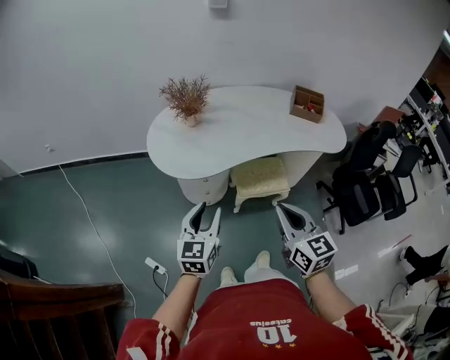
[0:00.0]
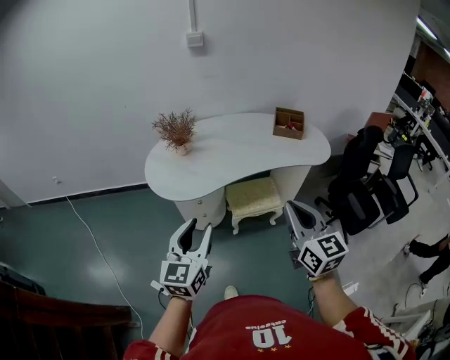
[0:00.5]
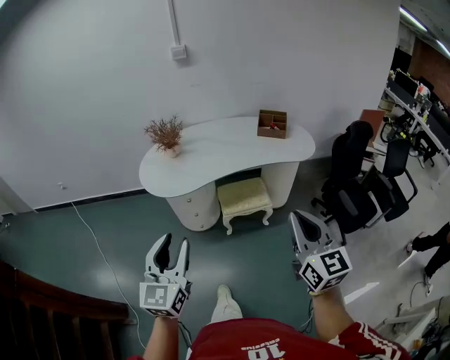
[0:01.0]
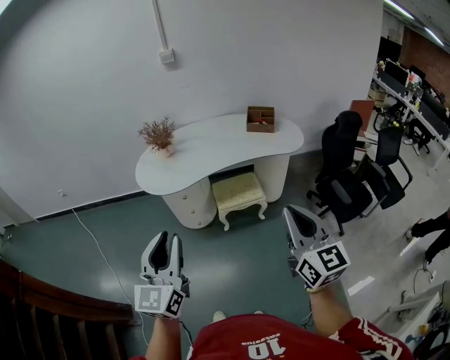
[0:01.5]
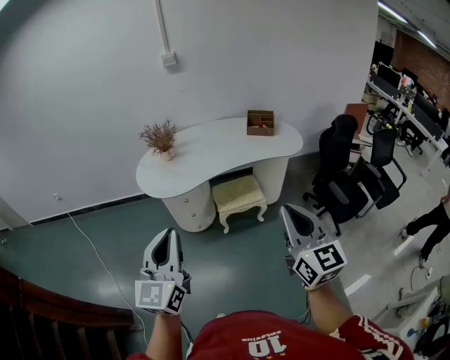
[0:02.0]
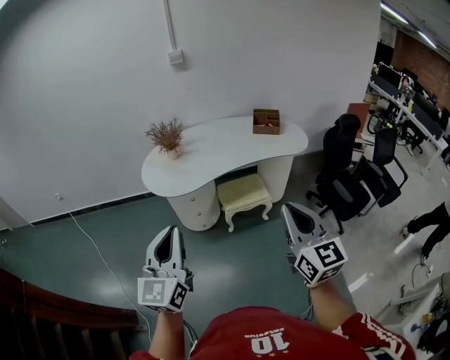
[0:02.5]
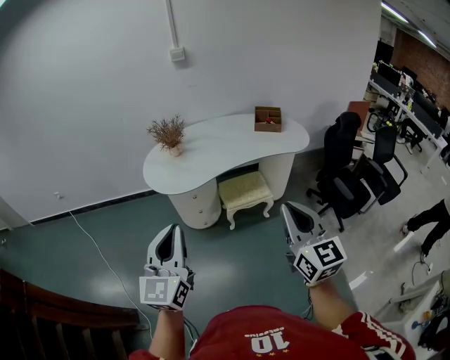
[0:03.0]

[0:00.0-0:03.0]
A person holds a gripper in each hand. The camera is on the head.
0:00.0 to 0:01.5: The right gripper travels backward, to the right and upward by approximately 35 cm, and changes its angle by roughly 20 degrees. Meanwhile the left gripper travels backward and upward by about 35 cm, and turns by about 20 degrees.
0:01.5 to 0:03.0: Both grippers move to the left, some 10 cm. The left gripper closes its fingers.

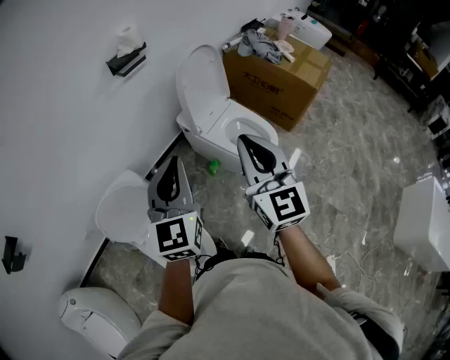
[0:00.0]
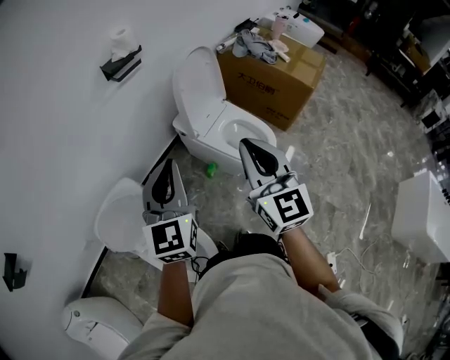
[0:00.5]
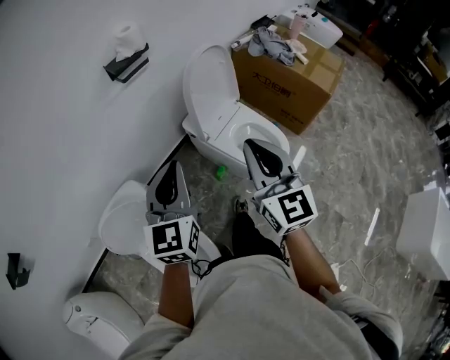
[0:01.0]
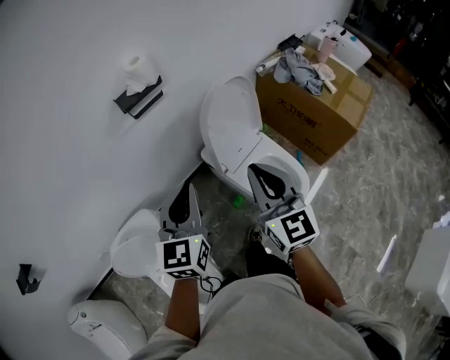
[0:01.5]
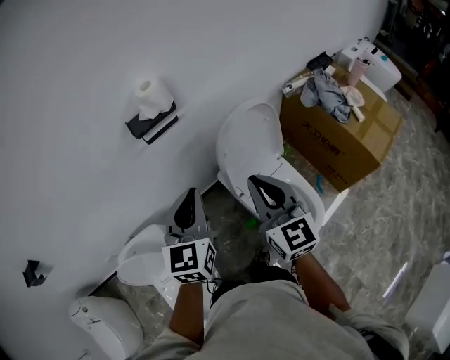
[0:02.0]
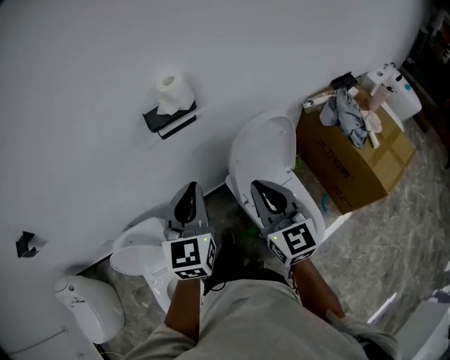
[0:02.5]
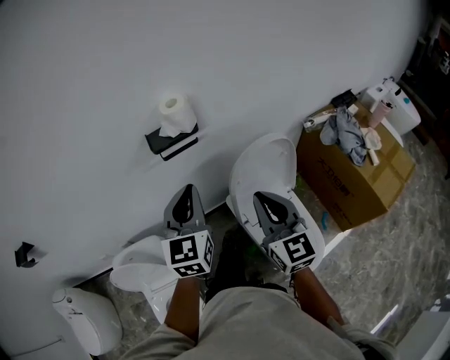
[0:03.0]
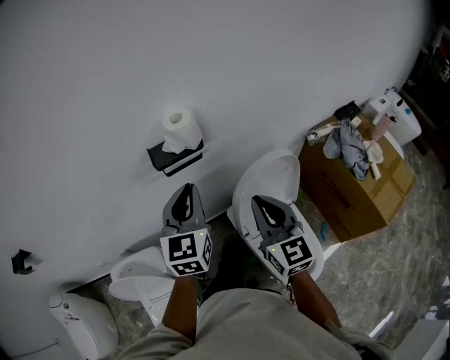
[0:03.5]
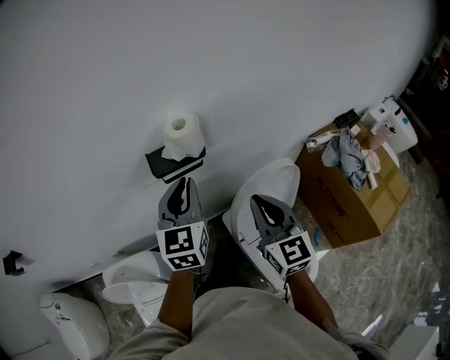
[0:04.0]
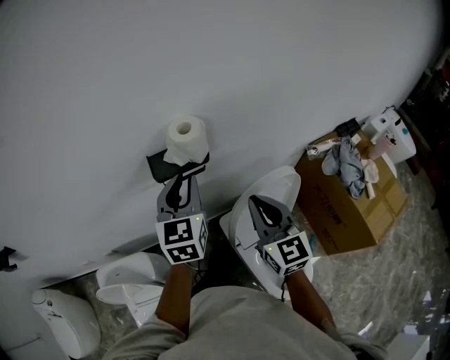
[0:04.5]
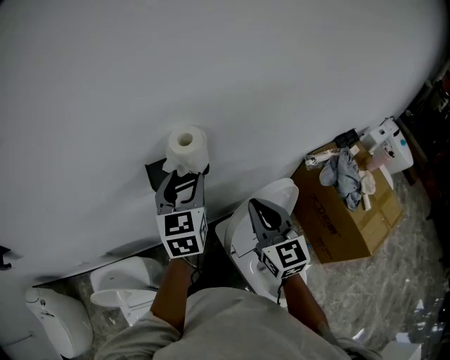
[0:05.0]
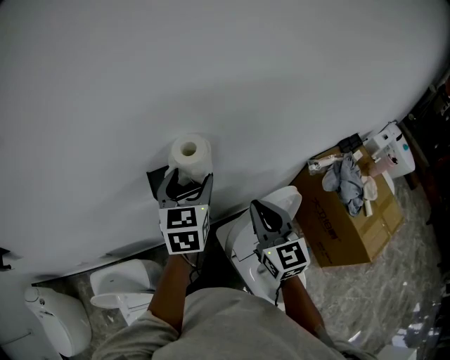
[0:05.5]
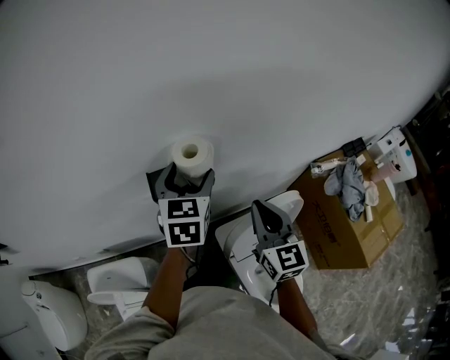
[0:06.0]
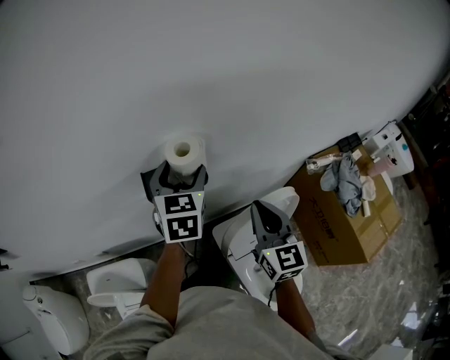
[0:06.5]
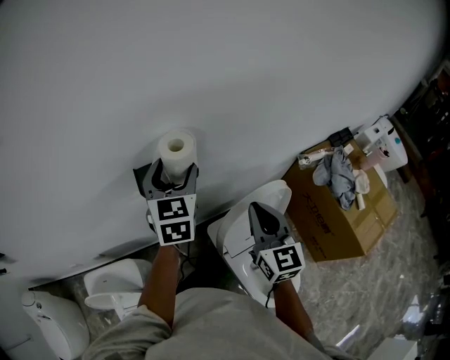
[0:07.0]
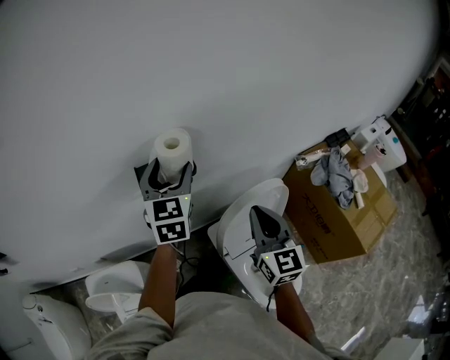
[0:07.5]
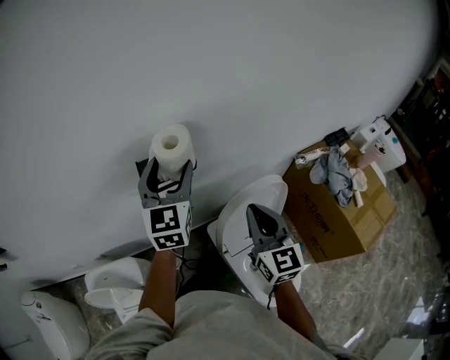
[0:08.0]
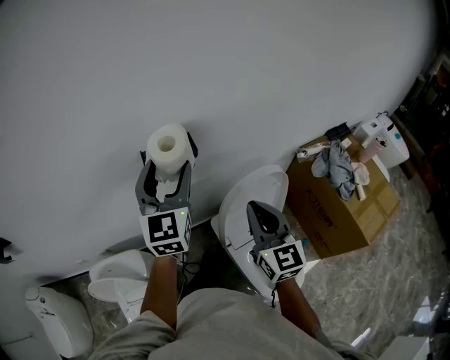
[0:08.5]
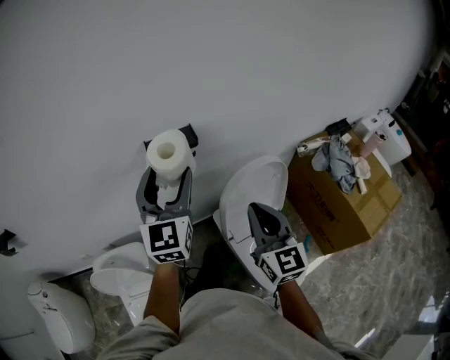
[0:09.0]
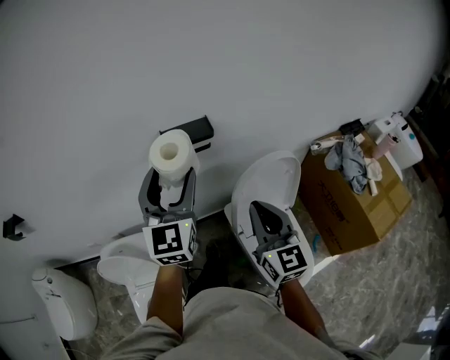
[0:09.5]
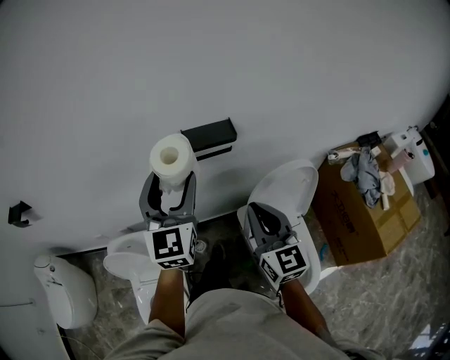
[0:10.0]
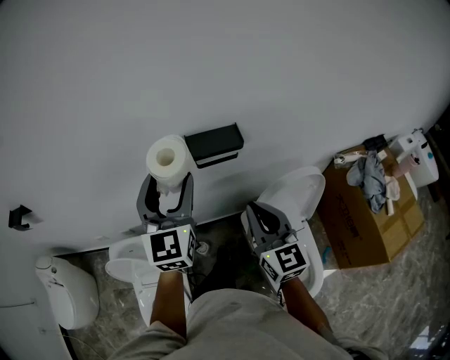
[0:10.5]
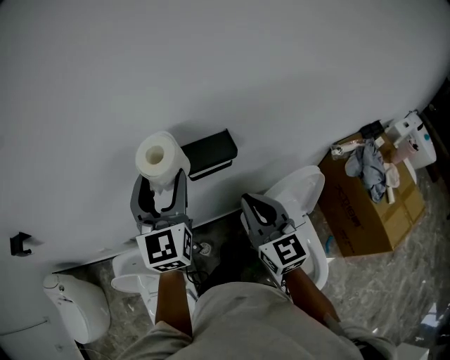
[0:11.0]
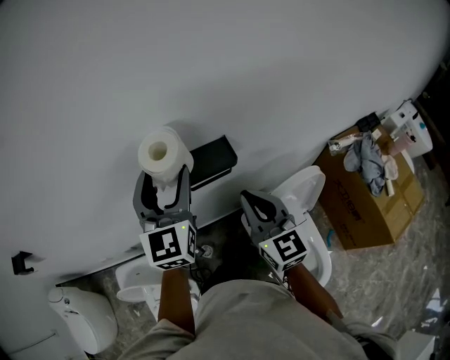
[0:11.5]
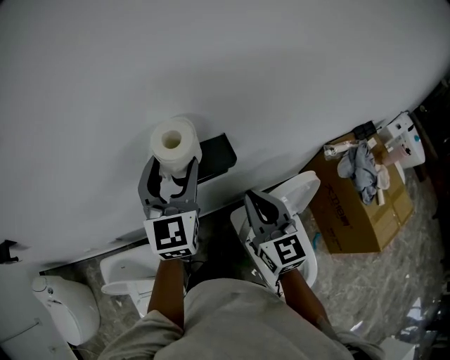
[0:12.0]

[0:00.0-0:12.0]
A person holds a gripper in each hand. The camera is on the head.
0:00.0 to 0:02.0: The grippers both shift forward by approximately 35 cm. The right gripper rotates some 20 degrees.
0:02.0 to 0:04.0: The grippers both shift forward by some 20 cm.
0:04.0 to 0:06.0: The two grippers go approximately 10 cm forward. The left gripper opens up.
0:06.0 to 0:08.0: The right gripper heads backward, covering about 10 cm. Meanwhile the left gripper heads backward and upward, covering about 10 cm, and swivels roughly 20 degrees.
0:08.0 to 0:10.0: The left gripper is displaced backward and to the left by some 20 cm. The right gripper travels to the left and backward by roughly 15 cm.
0:10.0 to 0:12.0: Both grippers travel together forward, some 15 cm.

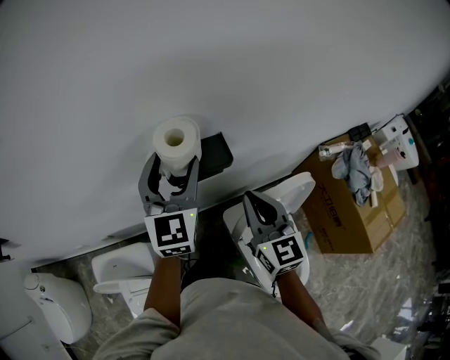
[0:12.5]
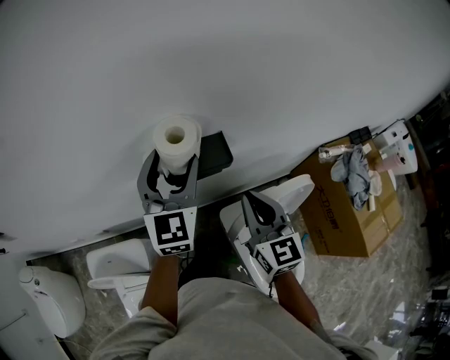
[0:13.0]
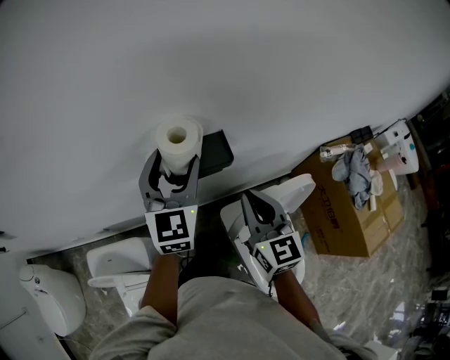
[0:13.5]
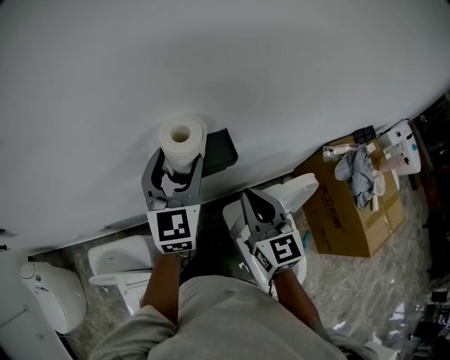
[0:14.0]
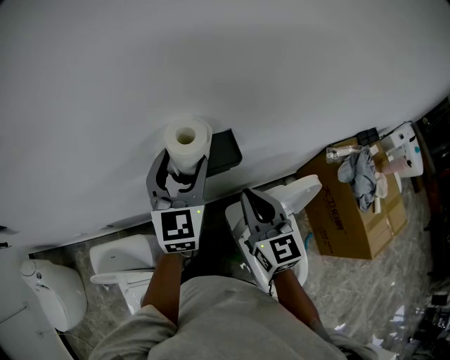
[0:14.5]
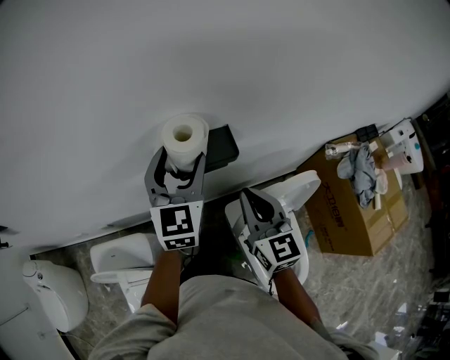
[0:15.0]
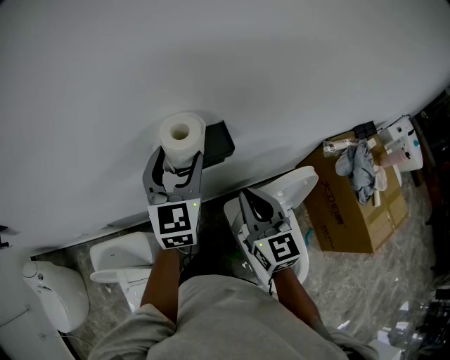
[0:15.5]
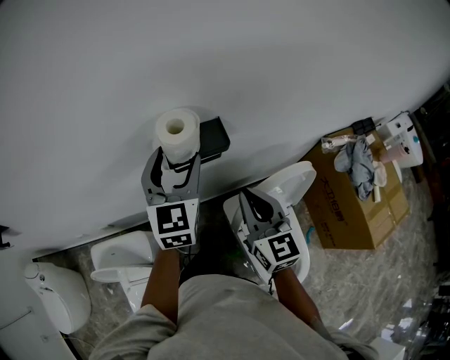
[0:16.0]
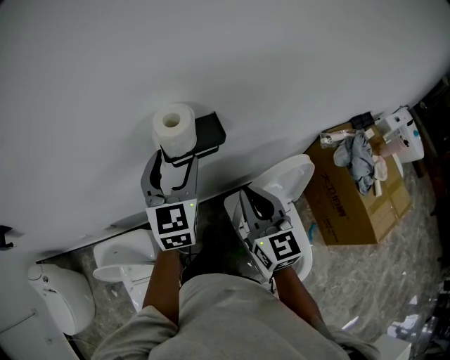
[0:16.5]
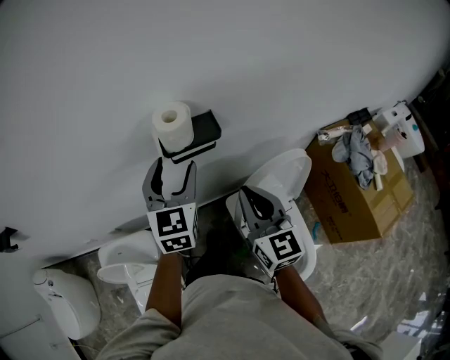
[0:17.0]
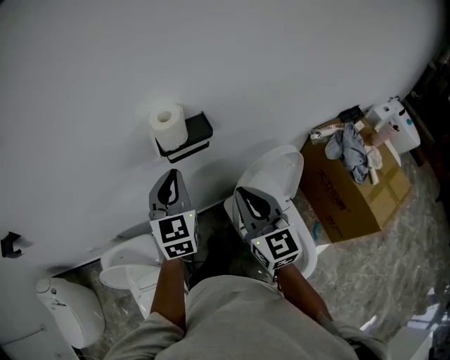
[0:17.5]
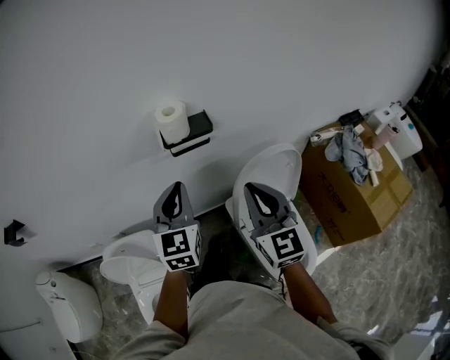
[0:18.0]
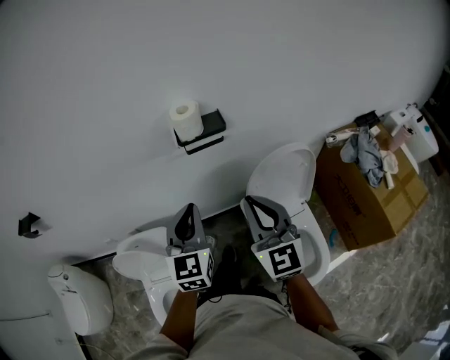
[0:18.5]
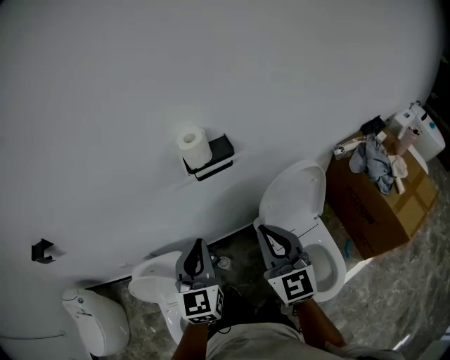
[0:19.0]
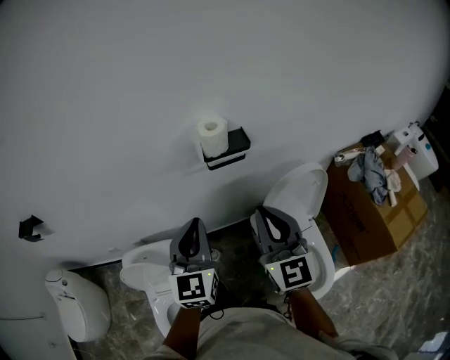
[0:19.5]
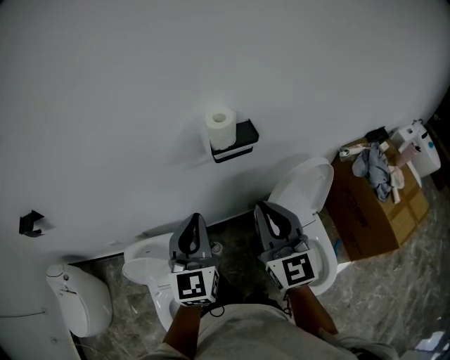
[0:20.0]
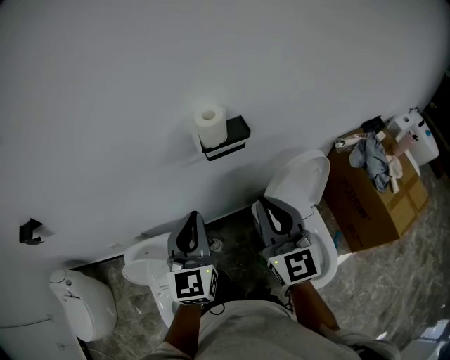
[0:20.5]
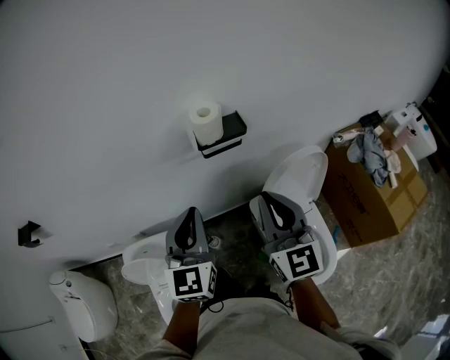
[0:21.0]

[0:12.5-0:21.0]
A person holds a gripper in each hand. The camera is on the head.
0:12.5 to 0:14.5: There are only small adjustments of the grippers.
0:14.5 to 0:16.5: The two grippers go approximately 5 cm backward.
0:16.5 to 0:19.0: The right gripper goes approximately 15 cm backward. Meanwhile the left gripper is displaced backward by roughly 25 cm, and closes.
0:19.0 to 0:21.0: The right gripper moves about 5 cm; the left gripper ends up some 5 cm from where it was.

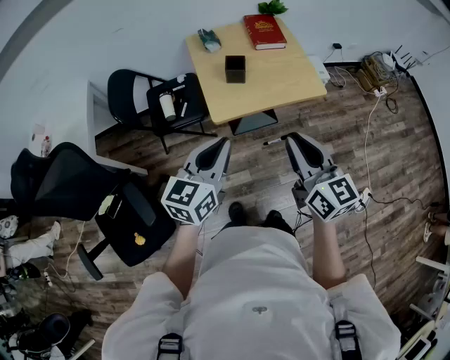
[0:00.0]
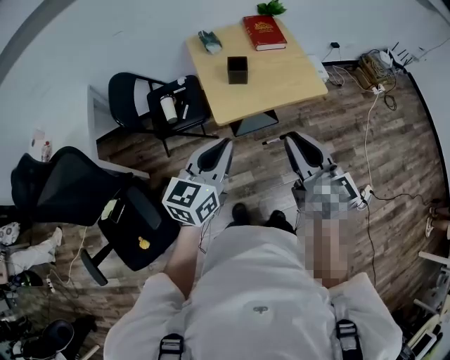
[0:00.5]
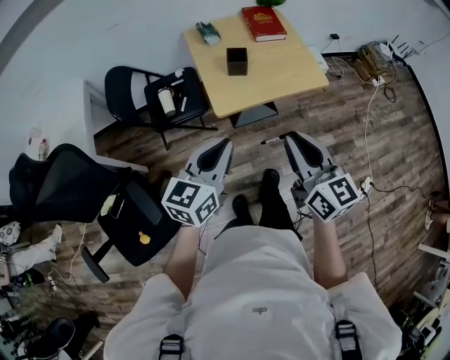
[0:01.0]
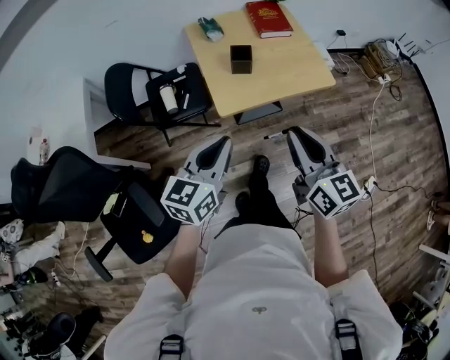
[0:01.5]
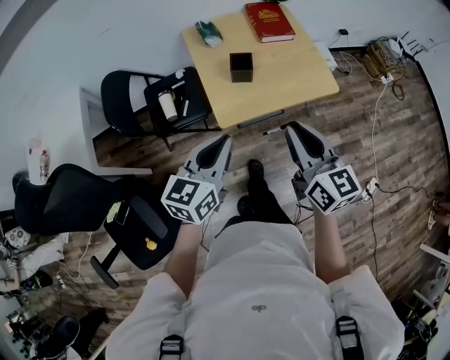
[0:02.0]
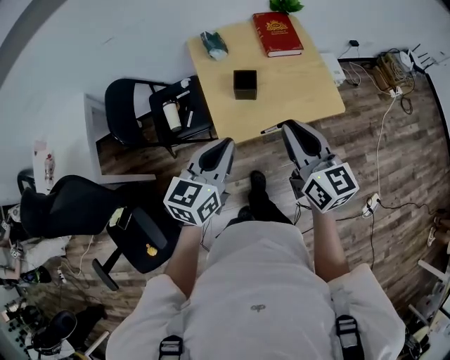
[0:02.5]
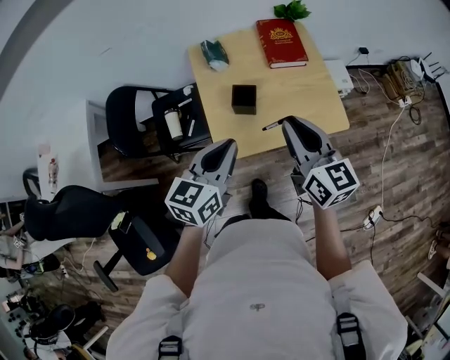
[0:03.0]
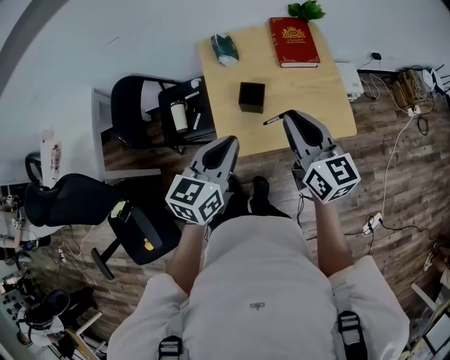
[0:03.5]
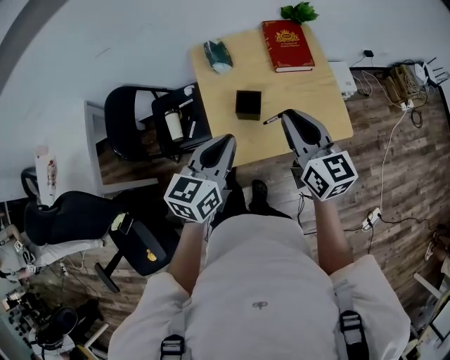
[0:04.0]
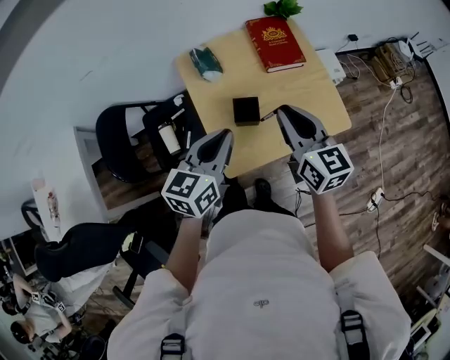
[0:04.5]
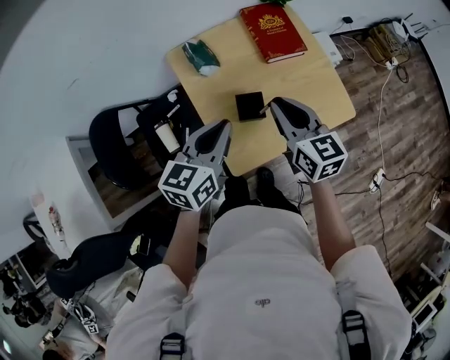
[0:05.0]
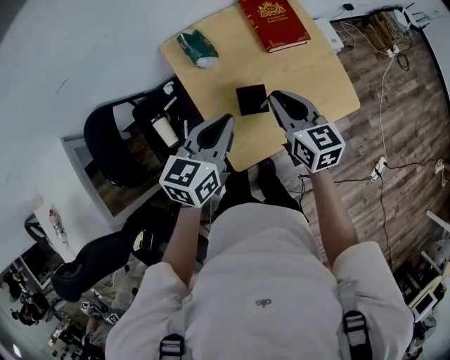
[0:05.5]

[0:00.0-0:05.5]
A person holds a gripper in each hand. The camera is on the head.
0:00.0 to 0:02.0: Both grippers move forward, about 10 cm.
0:02.0 to 0:03.5: Both grippers travel together forward, some 20 cm.
0:03.5 to 0:05.5: The left gripper is displaced forward and to the left by roughly 15 cm, while the right gripper heads forward, downward and to the left, covering approximately 20 cm, and changes its angle by roughly 20 degrees.
